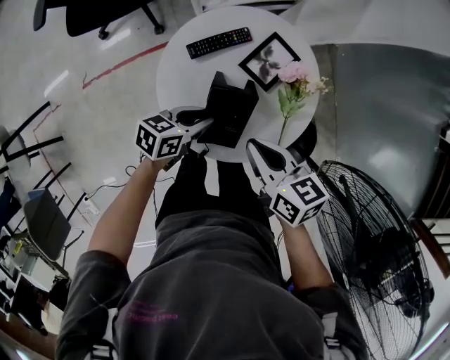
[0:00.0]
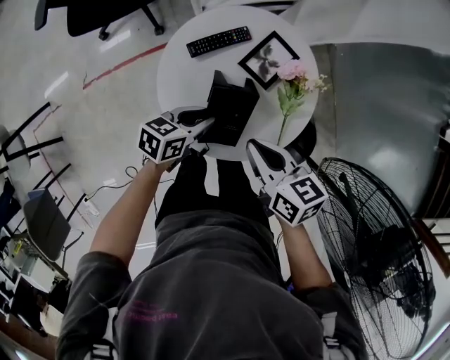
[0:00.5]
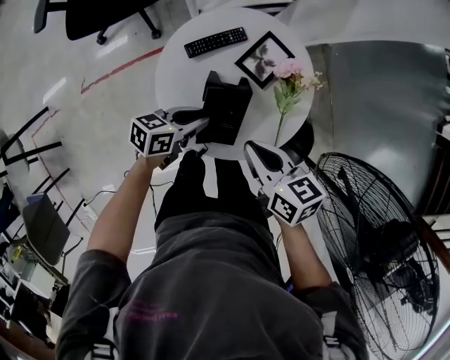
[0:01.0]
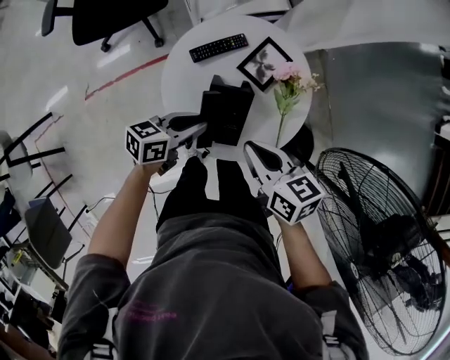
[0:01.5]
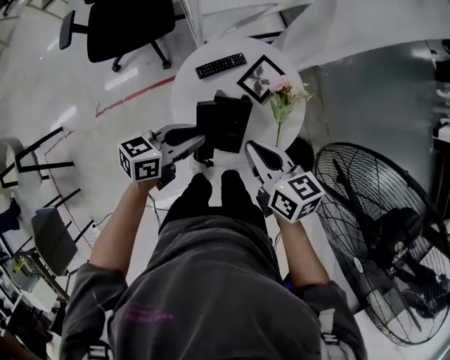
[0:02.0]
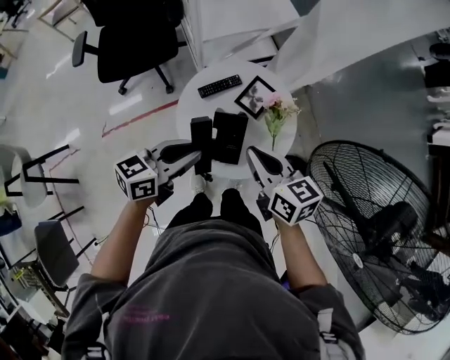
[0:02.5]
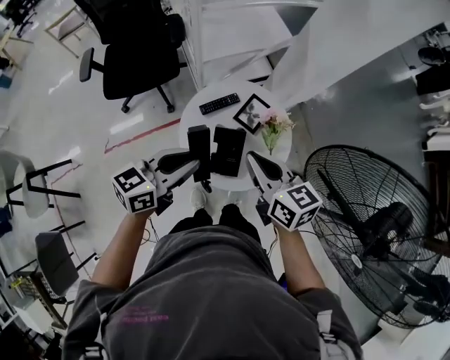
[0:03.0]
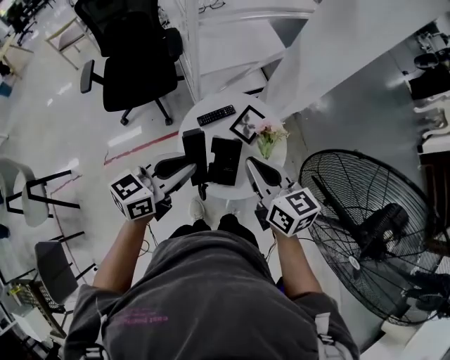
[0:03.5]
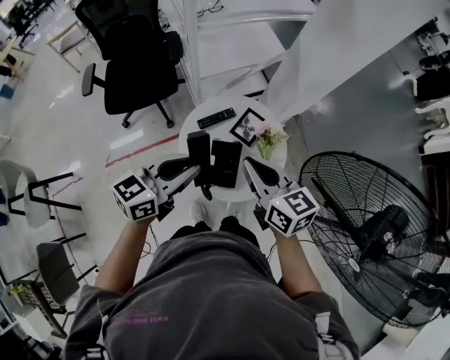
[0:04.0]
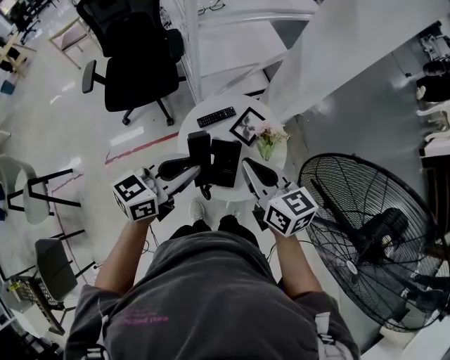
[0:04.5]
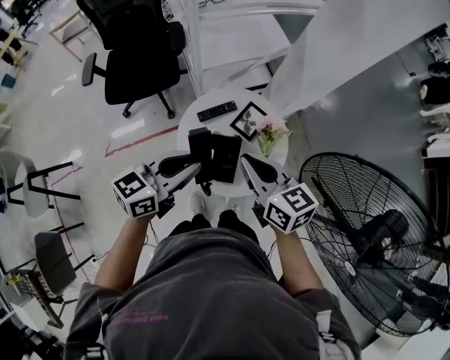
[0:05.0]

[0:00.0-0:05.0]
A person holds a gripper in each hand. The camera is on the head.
0:00.0 to 0:02.5: The right gripper travels upward by some 15 cm; the left gripper heads upward, covering roughly 25 cm, and turns by about 30 degrees.
0:02.5 to 0:05.0: Both grippers move upward, roughly 10 cm.

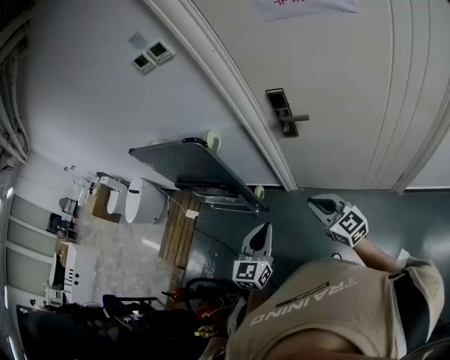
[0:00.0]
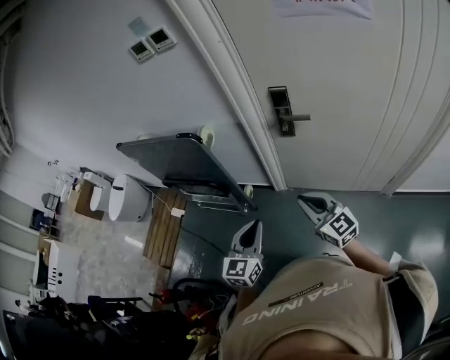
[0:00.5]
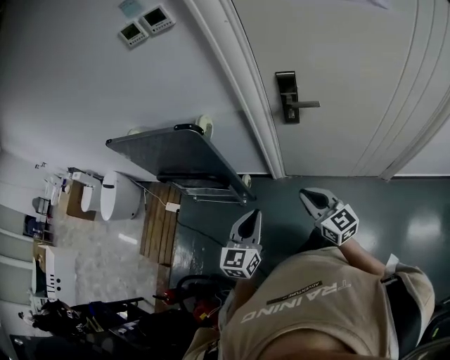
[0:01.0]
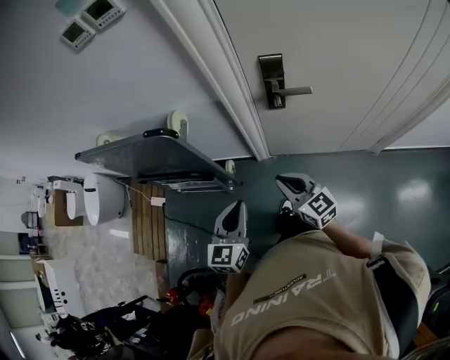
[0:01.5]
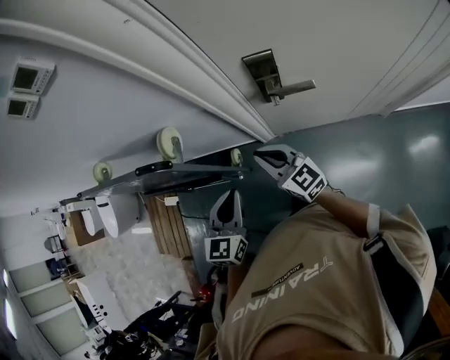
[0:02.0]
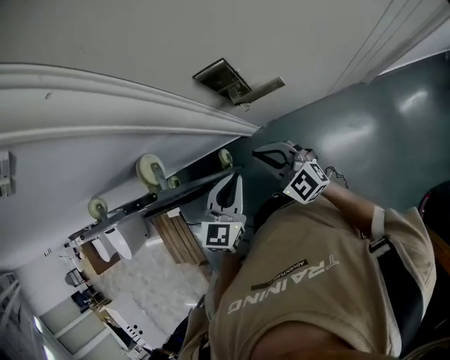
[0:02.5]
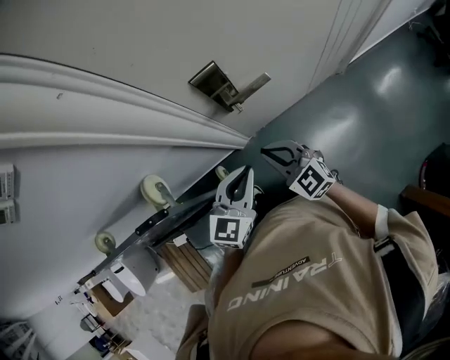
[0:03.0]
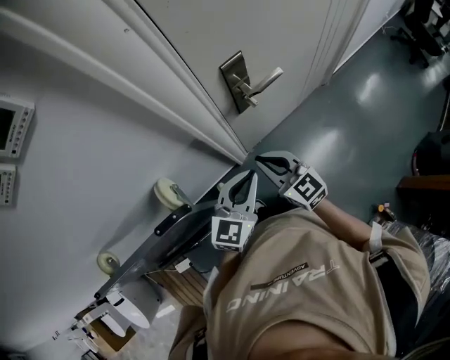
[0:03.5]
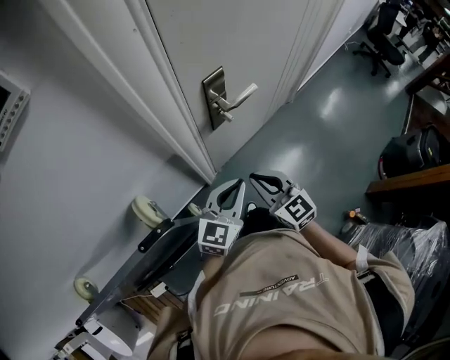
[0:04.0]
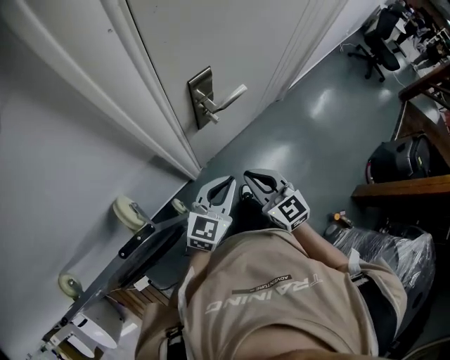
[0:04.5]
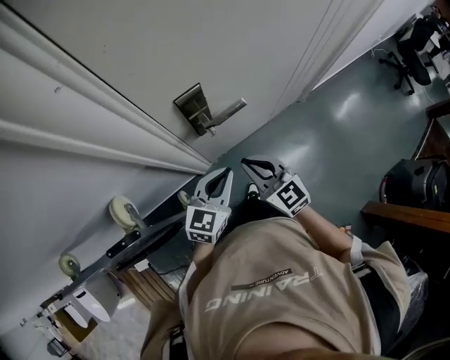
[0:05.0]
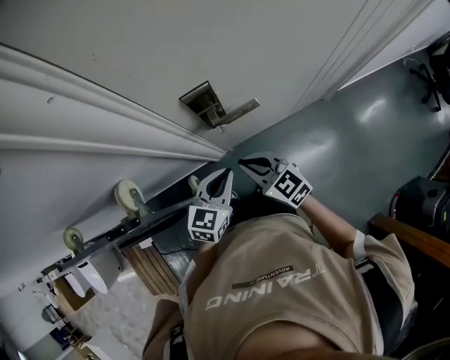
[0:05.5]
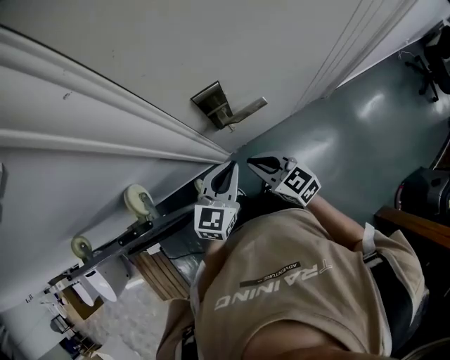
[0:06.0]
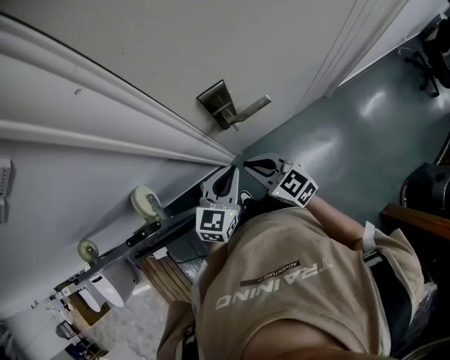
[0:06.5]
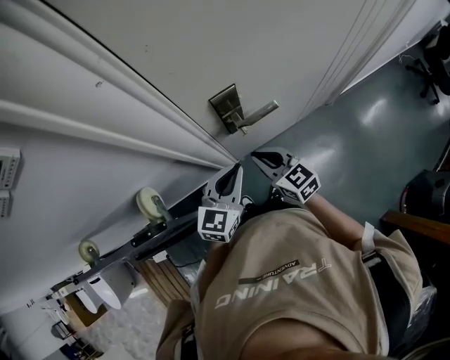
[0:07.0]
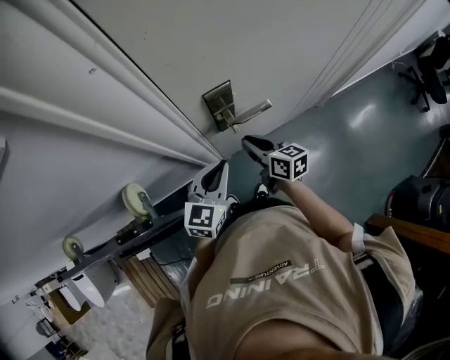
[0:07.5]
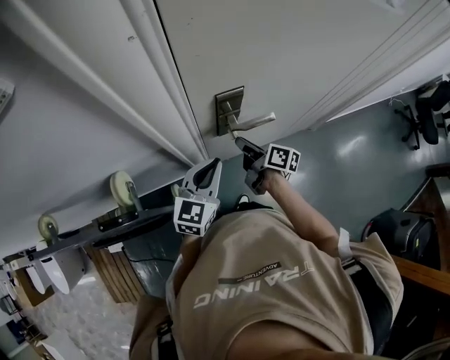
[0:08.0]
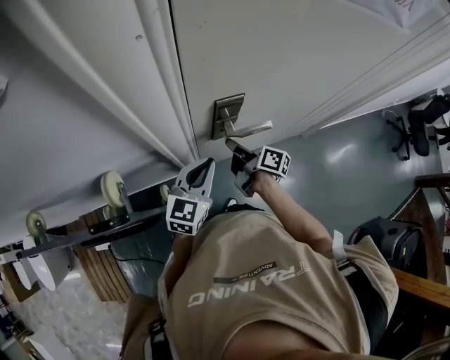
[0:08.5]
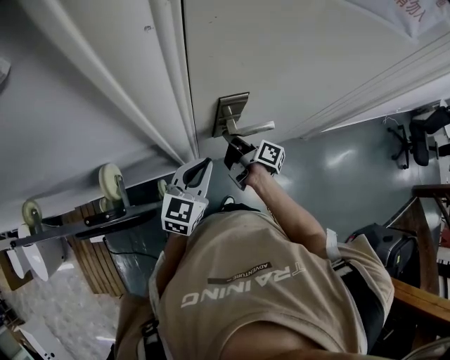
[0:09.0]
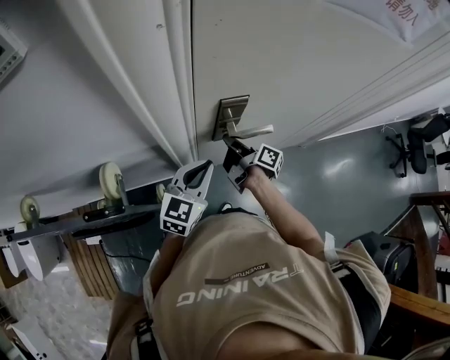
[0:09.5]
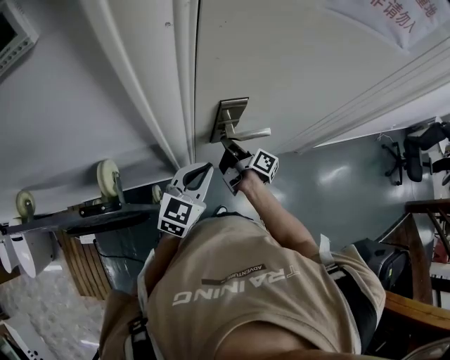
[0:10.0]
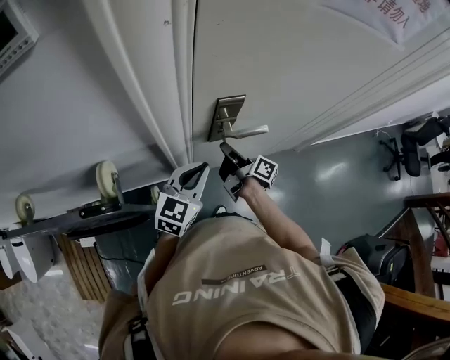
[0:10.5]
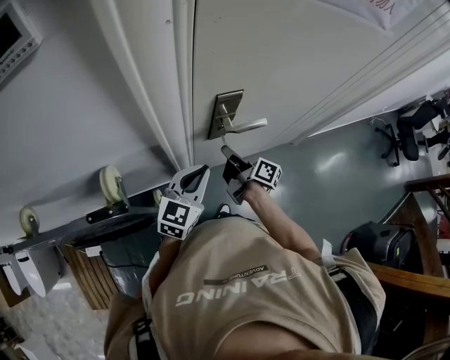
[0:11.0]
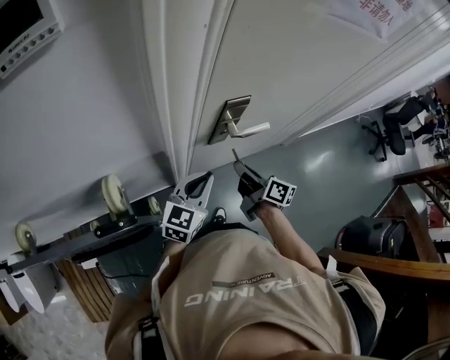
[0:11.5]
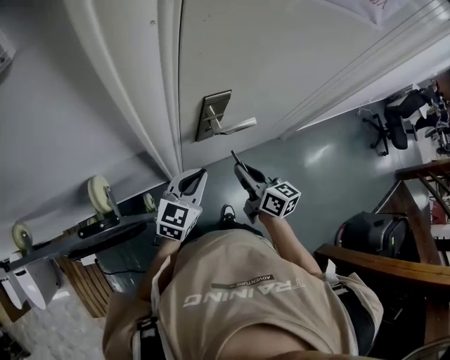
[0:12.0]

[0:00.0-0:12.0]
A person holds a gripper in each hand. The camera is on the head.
0:00.0 to 0:02.0: The left gripper moves forward, some 25 cm. Meanwhile the right gripper heads forward and to the left, covering approximately 30 cm.
0:02.0 to 0:04.0: The right gripper swivels roughly 50 degrees. Meanwhile the left gripper rotates about 60 degrees.
0:04.0 to 0:06.0: The left gripper ends up roughly 15 cm from where it was, and swivels some 20 degrees. Meanwhile the right gripper changes place by approximately 10 cm, and swivels approximately 30 degrees.
0:06.0 to 0:08.0: The right gripper heads forward, covering approximately 10 cm, and rolls clockwise, seen from behind, by roughly 60 degrees, while the left gripper moves roughly 5 cm.
0:10.0 to 0:12.0: The right gripper heads backward, upward and to the right, covering some 15 cm, and twists approximately 50 degrees counterclockwise, seen from behind.

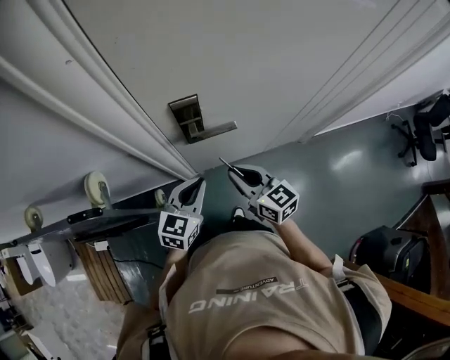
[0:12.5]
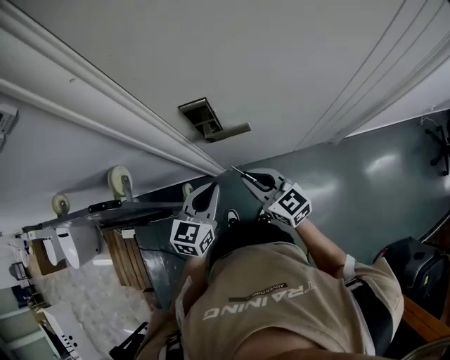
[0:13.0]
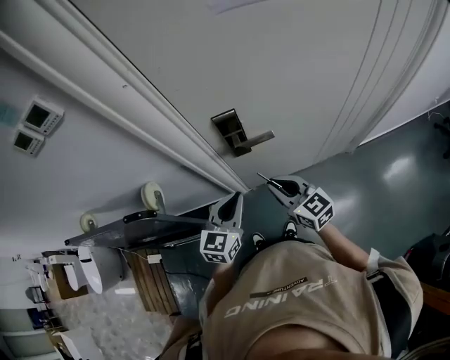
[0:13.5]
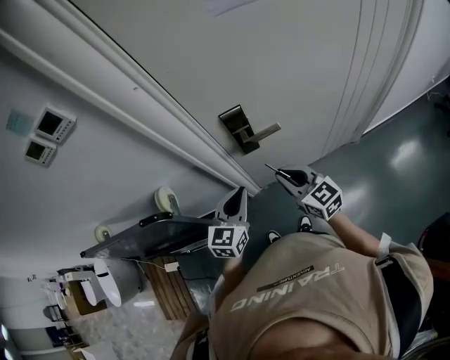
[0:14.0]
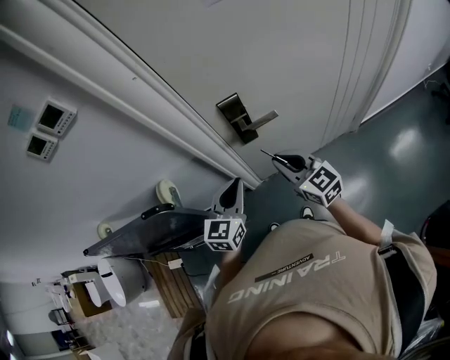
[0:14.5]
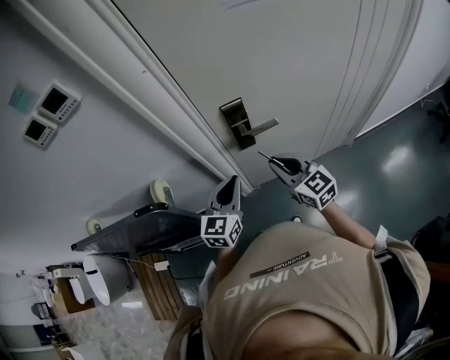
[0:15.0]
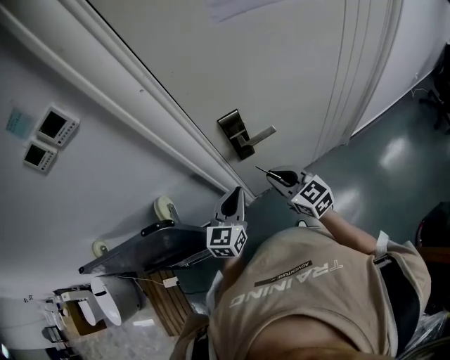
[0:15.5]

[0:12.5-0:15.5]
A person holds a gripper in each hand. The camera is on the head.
0:12.5 to 0:14.0: The left gripper shifts some 10 cm upward and to the left; the right gripper shifts by roughly 5 cm.
0:14.0 to 0:15.5: The grippers move only a little.

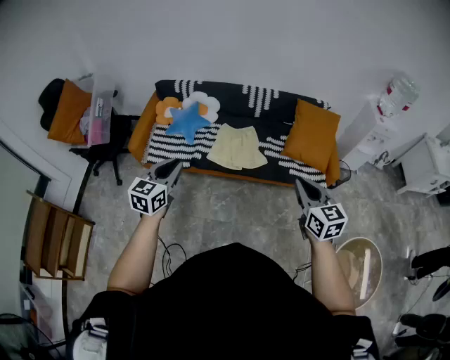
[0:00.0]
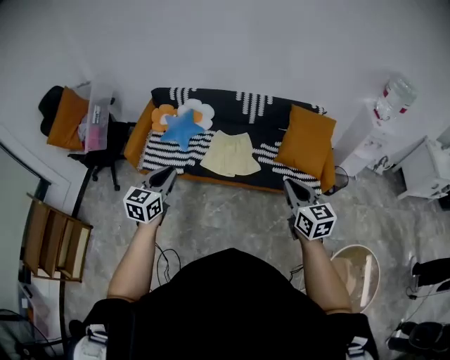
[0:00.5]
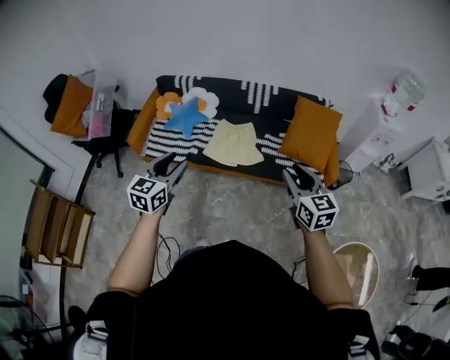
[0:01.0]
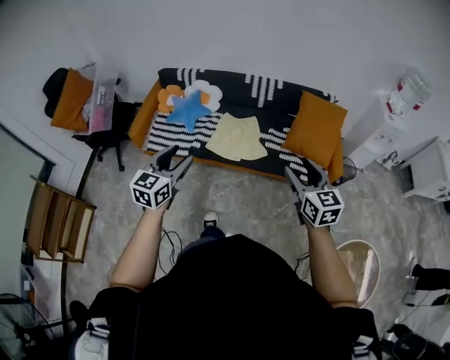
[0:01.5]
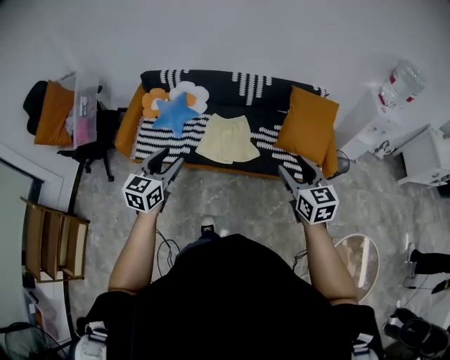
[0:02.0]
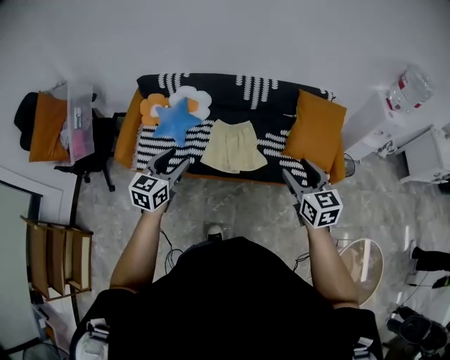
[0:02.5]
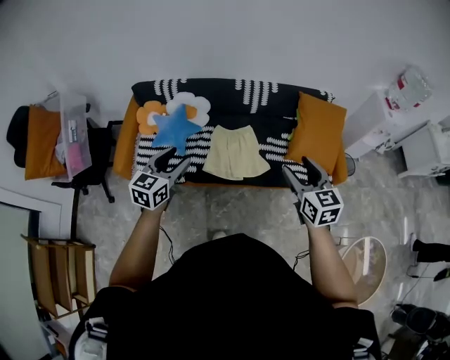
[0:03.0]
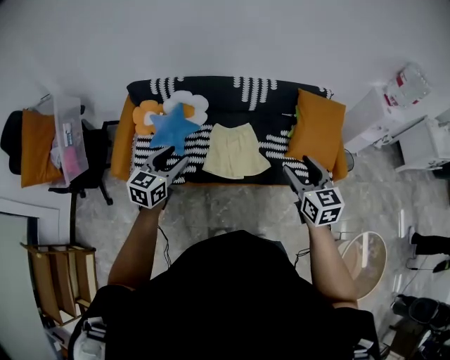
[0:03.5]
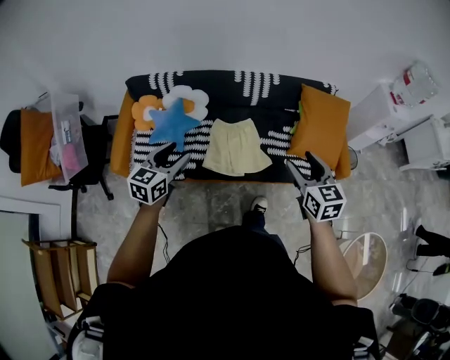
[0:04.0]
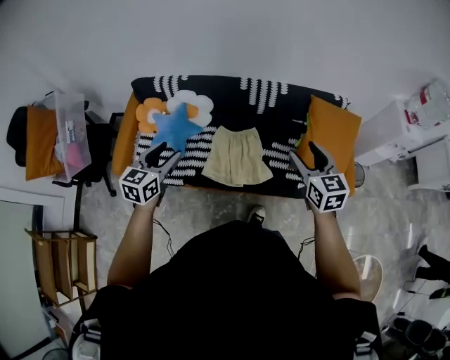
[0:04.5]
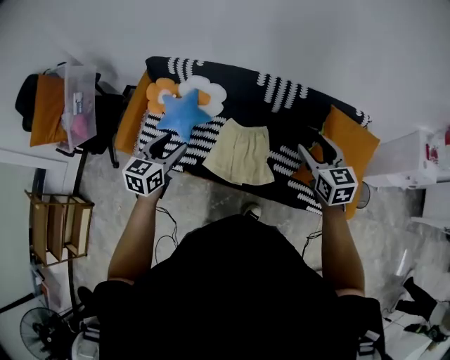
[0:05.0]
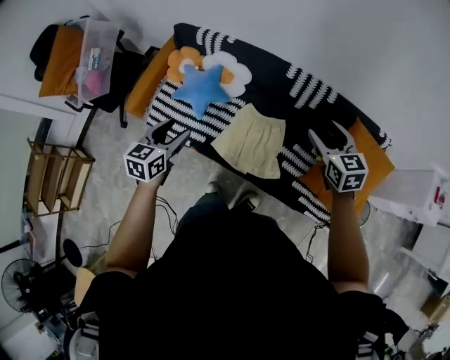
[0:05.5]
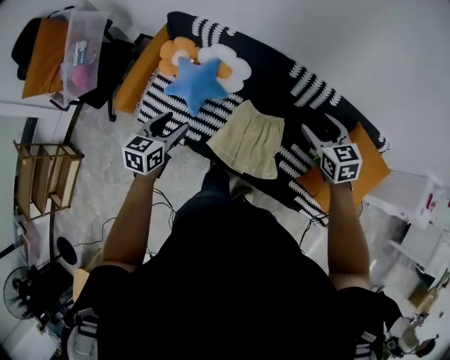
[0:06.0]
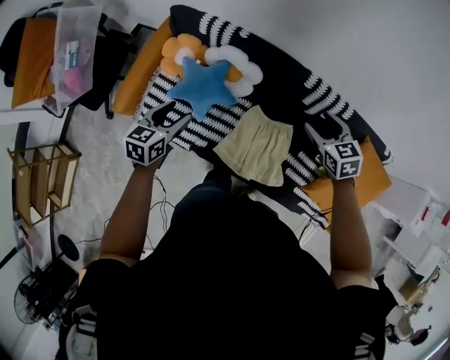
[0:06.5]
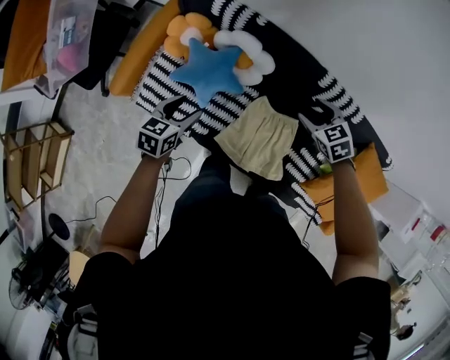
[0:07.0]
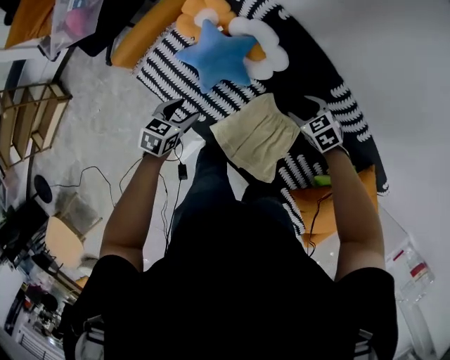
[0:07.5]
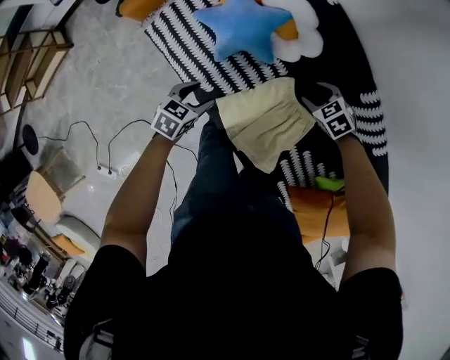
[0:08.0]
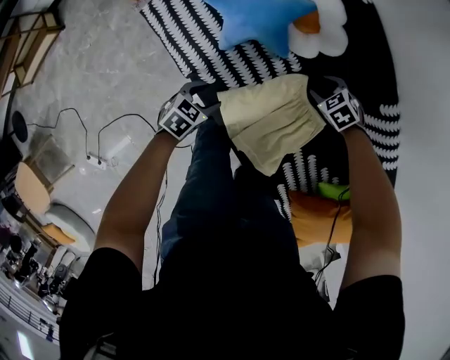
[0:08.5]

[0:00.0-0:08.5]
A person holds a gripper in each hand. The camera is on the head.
0:00.0 to 0:02.0: The left gripper moves forward and to the right, approximately 10 cm, and opens its fingers. The right gripper heads forward, covering roughly 10 cm, and opens up.
0:02.0 to 0:04.0: The grippers both shift forward and to the left by some 25 cm.
0:04.0 to 0:06.5: The right gripper changes place by about 50 cm, and changes its angle by approximately 40 degrees. Meanwhile the left gripper shifts by approximately 35 cm, and turns by approximately 30 degrees.
0:06.5 to 0:08.5: The two grippers go some 40 cm downward. The right gripper points its fingers approximately 30 degrees further downward. Meanwhile the left gripper changes its angle by roughly 20 degrees.
